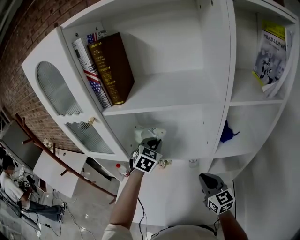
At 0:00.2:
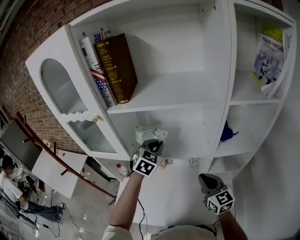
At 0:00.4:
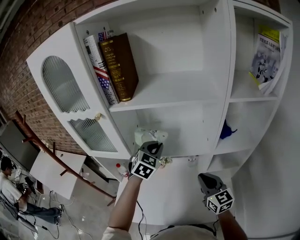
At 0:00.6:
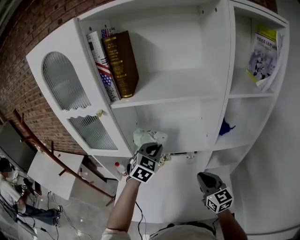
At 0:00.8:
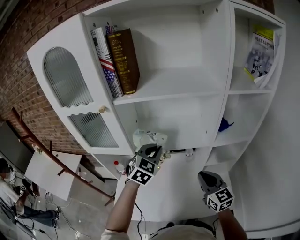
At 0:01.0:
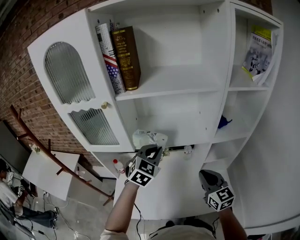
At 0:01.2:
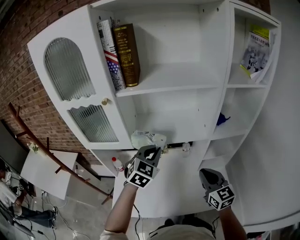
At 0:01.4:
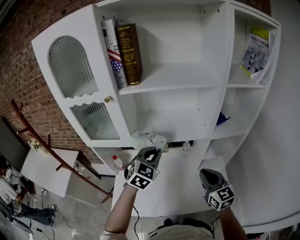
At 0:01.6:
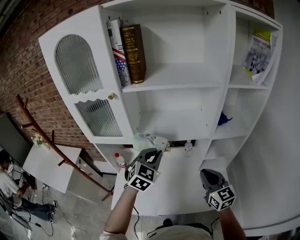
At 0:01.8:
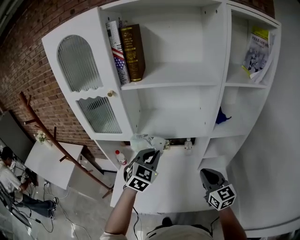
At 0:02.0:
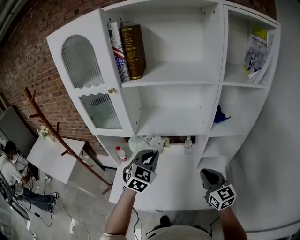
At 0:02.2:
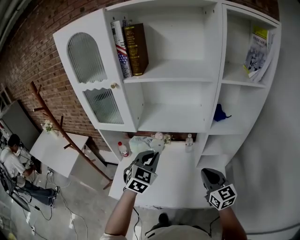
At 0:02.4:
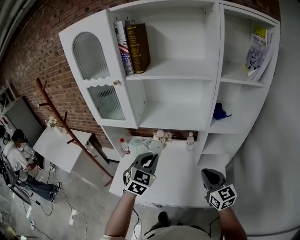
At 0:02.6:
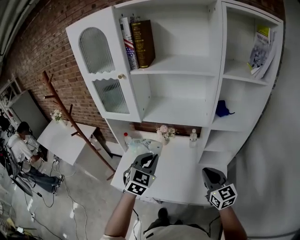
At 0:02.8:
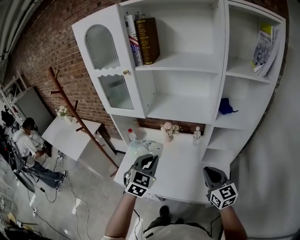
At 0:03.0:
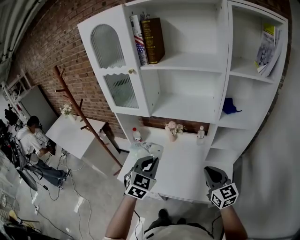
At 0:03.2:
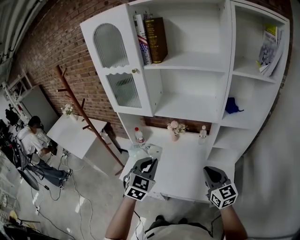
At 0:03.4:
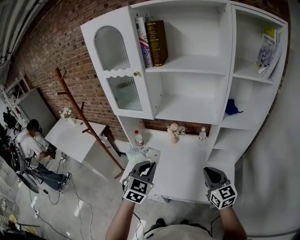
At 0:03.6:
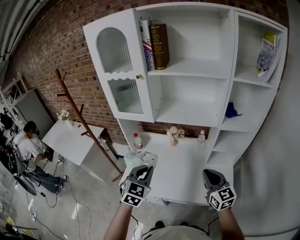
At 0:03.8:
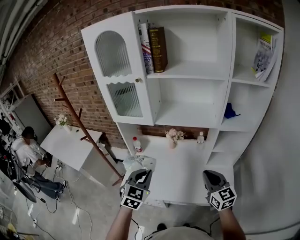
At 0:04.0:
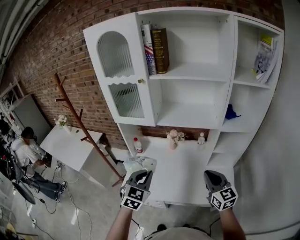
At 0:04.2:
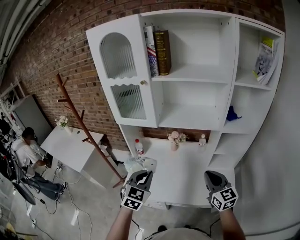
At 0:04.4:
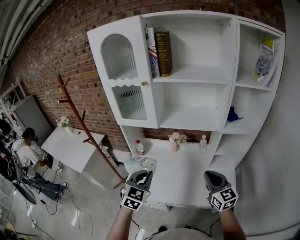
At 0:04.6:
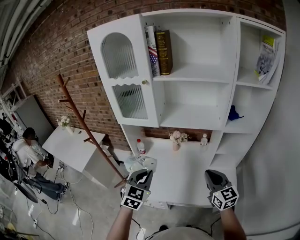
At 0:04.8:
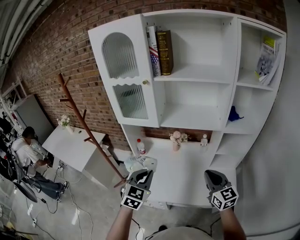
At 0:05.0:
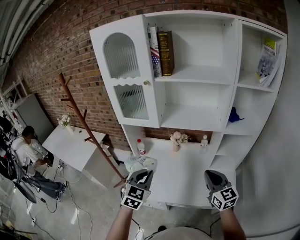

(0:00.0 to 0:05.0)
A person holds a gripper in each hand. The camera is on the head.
0:00.0 - 0:01.6: The left gripper shifts approximately 20 cm backward; the right gripper shifts about 10 cm backward.
0:01.6 - 0:03.4: The right gripper shifts about 10 cm backward, while the left gripper goes approximately 20 cm backward, and turns by approximately 20 degrees.
0:03.4 - 0:05.0: The left gripper travels to the left by some 5 cm.

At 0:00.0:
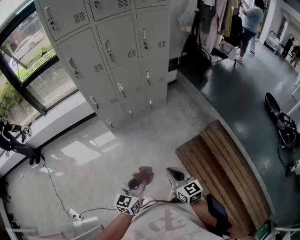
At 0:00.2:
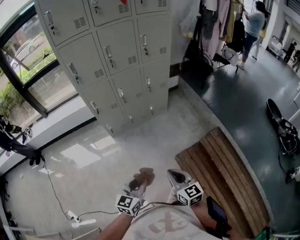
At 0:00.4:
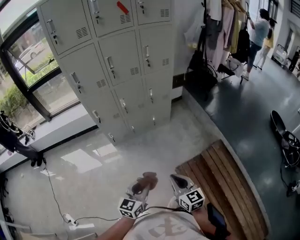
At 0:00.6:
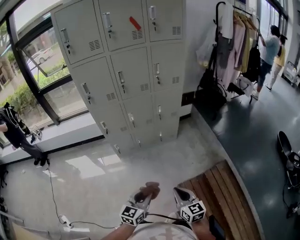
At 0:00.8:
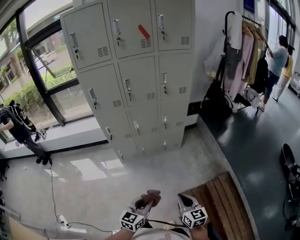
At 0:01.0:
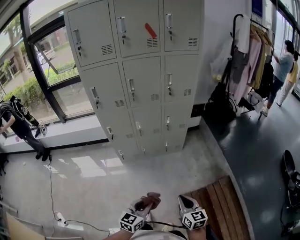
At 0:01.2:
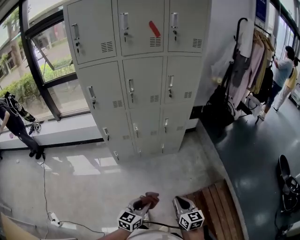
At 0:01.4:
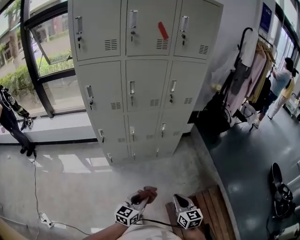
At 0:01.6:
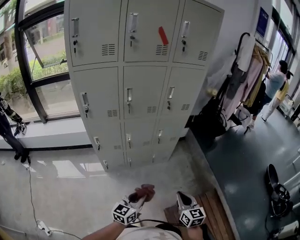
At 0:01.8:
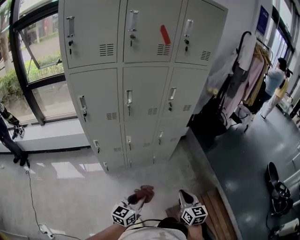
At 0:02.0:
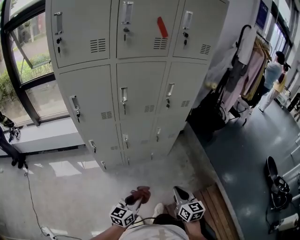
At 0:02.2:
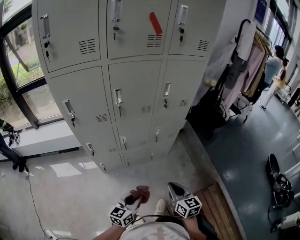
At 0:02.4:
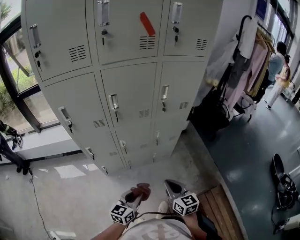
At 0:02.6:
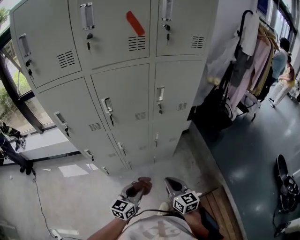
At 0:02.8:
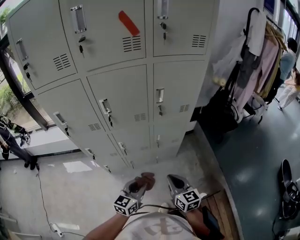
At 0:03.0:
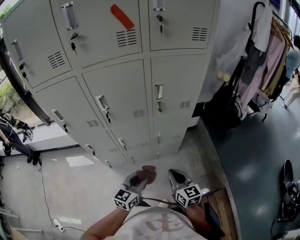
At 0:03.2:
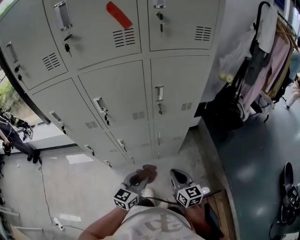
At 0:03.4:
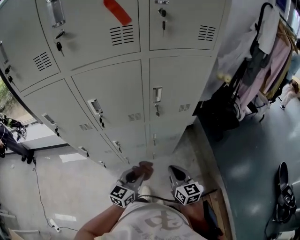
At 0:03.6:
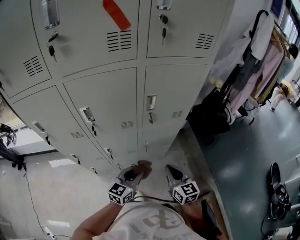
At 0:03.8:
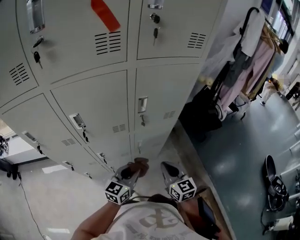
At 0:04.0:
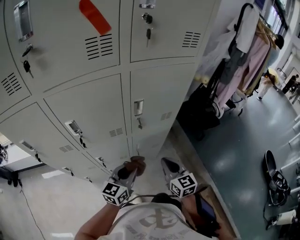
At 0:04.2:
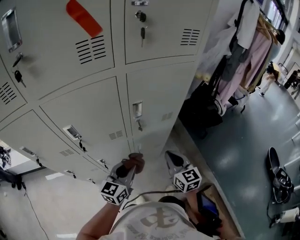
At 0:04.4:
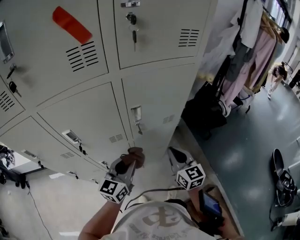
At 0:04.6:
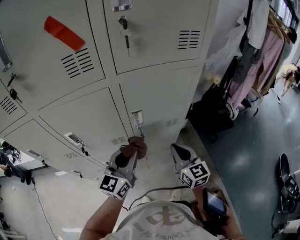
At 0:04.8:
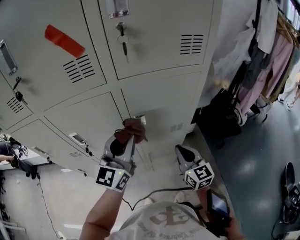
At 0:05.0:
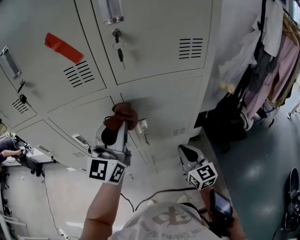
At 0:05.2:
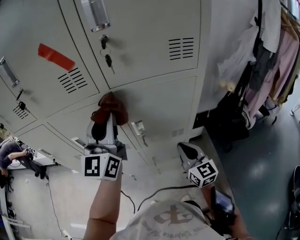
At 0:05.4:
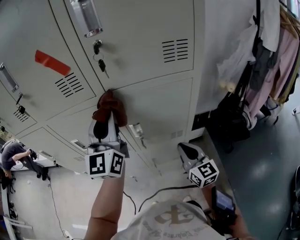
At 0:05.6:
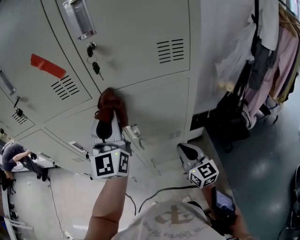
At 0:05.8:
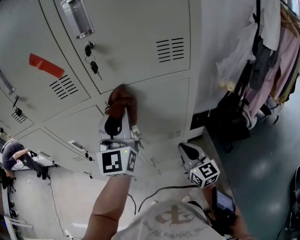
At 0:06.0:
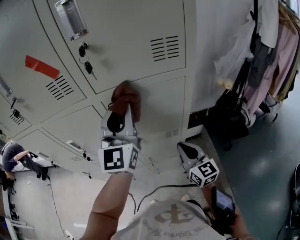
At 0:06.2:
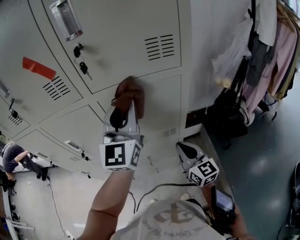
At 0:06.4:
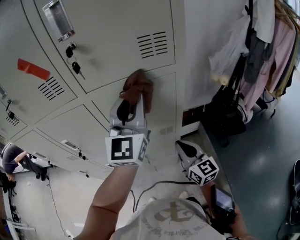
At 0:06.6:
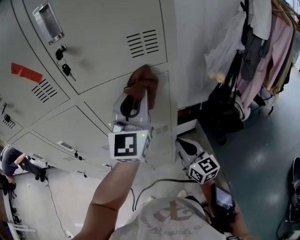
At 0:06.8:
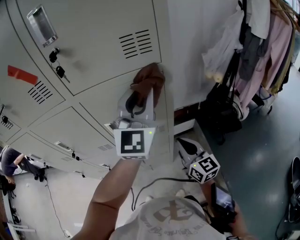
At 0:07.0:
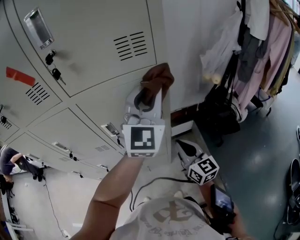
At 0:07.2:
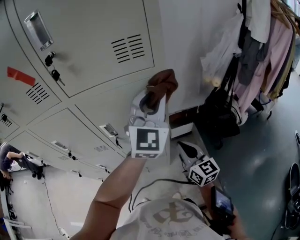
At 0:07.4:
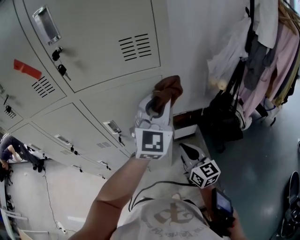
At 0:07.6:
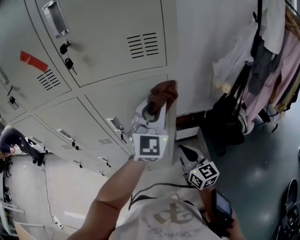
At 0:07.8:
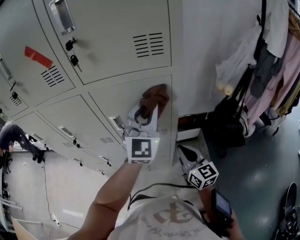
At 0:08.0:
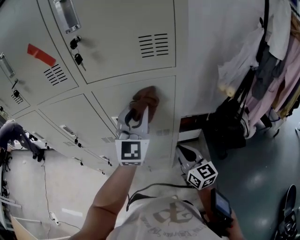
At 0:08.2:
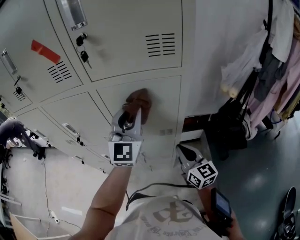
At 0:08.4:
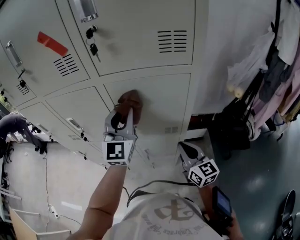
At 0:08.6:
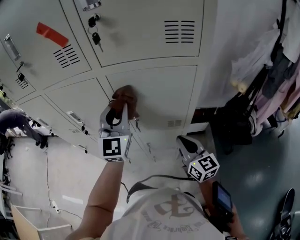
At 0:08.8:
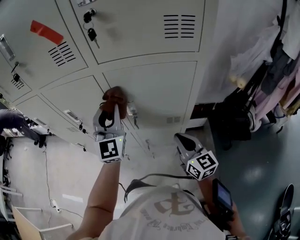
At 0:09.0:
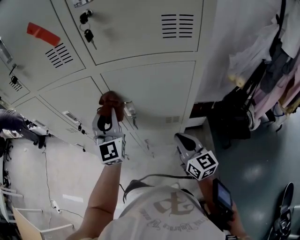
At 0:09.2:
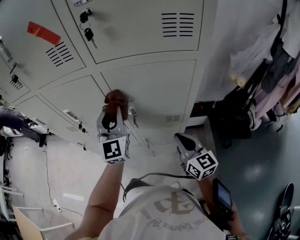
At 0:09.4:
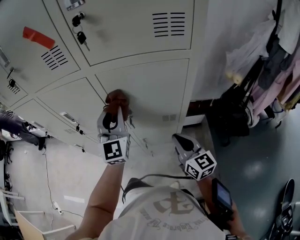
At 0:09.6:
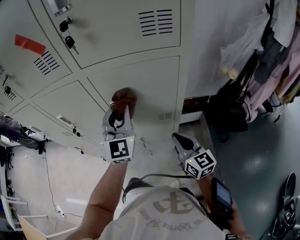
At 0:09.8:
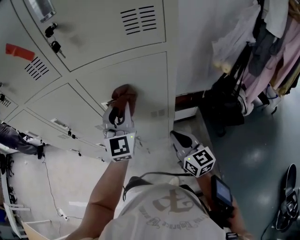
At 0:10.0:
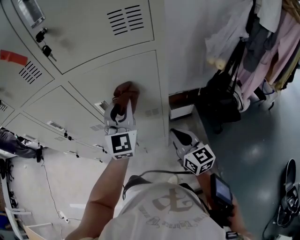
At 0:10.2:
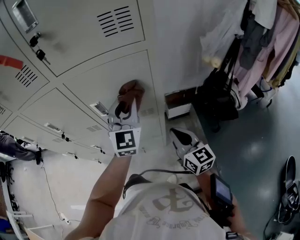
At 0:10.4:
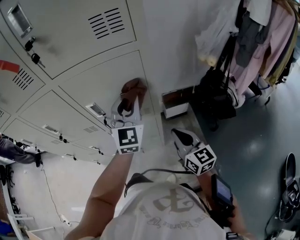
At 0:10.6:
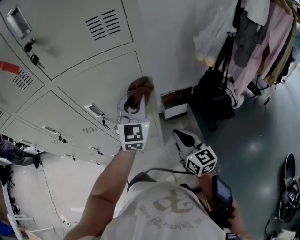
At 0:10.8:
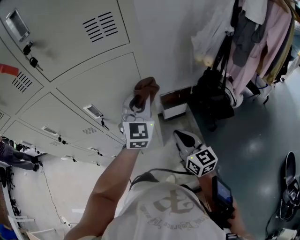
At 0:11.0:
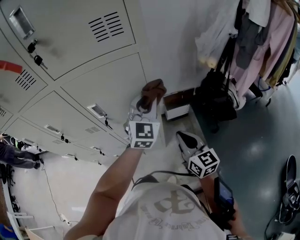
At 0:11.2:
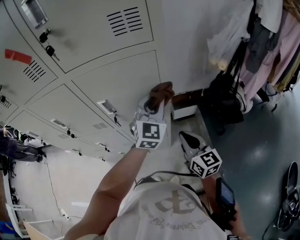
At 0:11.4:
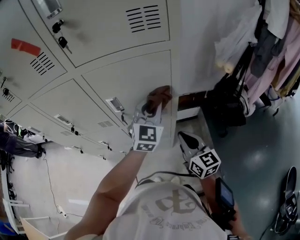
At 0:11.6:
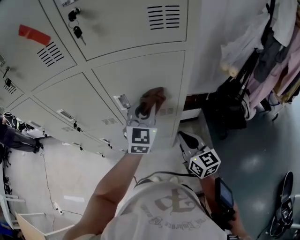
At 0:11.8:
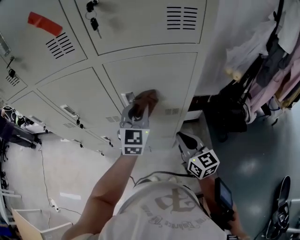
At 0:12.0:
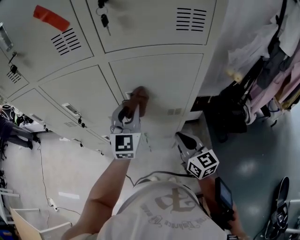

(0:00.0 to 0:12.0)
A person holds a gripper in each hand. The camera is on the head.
0:00.0 - 0:01.6: The grippers both shift forward by roughly 30 cm.
0:01.6 - 0:03.0: The two grippers go some 25 cm forward.
0:03.0 - 0:04.4: The right gripper is displaced forward by some 20 cm. The left gripper heads forward and upward, covering roughly 25 cm.
0:04.4 - 0:06.0: The left gripper heads upward and forward, covering approximately 30 cm, and swivels about 40 degrees; the right gripper goes some 10 cm to the right and forward.
0:06.0 - 0:07.6: The right gripper is displaced to the right by about 5 cm. Meanwhile the left gripper heads to the right, covering some 15 cm, and rotates approximately 20 degrees.
0:07.6 - 0:09.0: The left gripper shifts approximately 25 cm to the left, and changes its angle by approximately 30 degrees. Meanwhile the right gripper moves to the left, about 5 cm.
0:09.0 - 0:10.4: The right gripper shifts some 10 cm to the right and backward. Meanwhile the left gripper goes approximately 20 cm to the right, and turns by some 20 degrees.
0:10.4 - 0:12.0: The grippers both shift to the left by some 15 cm.

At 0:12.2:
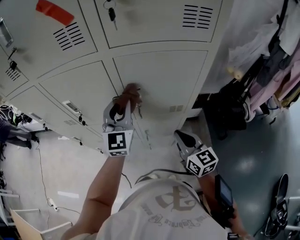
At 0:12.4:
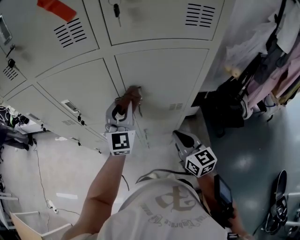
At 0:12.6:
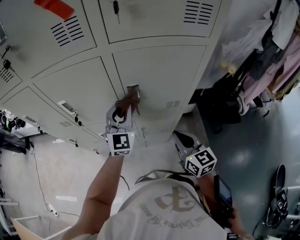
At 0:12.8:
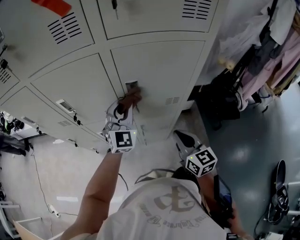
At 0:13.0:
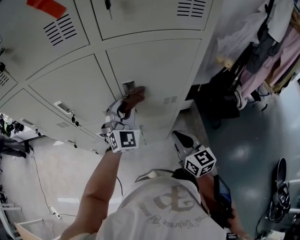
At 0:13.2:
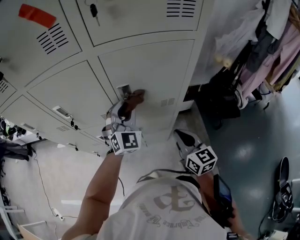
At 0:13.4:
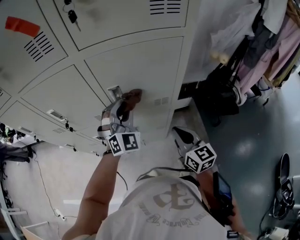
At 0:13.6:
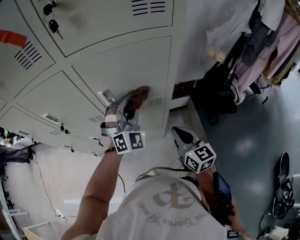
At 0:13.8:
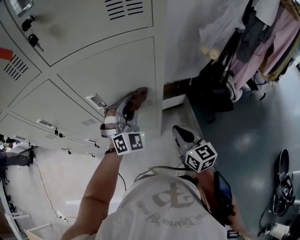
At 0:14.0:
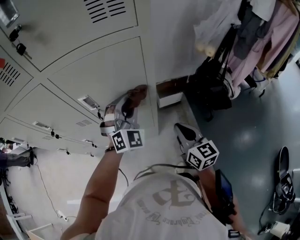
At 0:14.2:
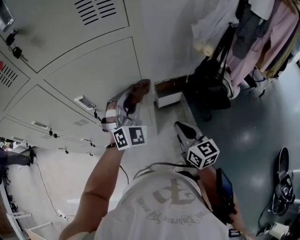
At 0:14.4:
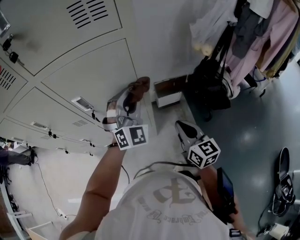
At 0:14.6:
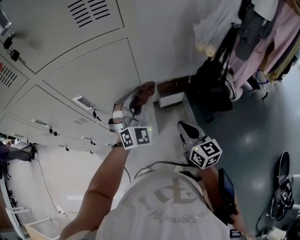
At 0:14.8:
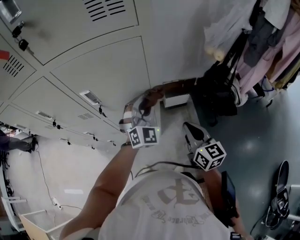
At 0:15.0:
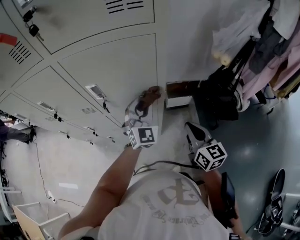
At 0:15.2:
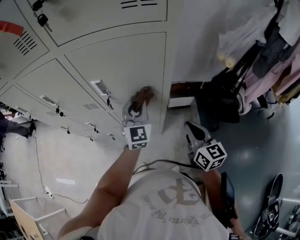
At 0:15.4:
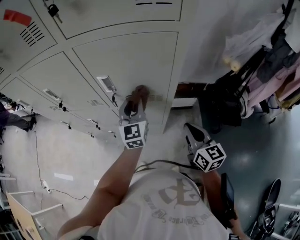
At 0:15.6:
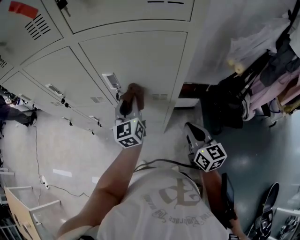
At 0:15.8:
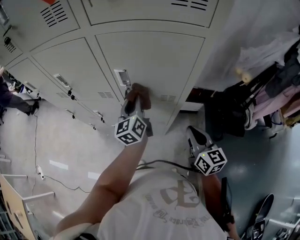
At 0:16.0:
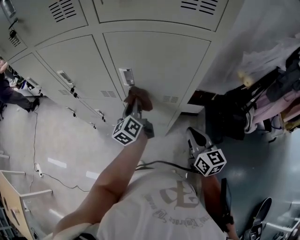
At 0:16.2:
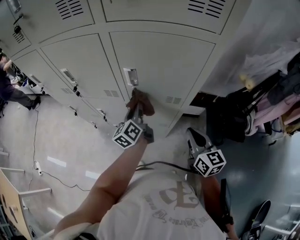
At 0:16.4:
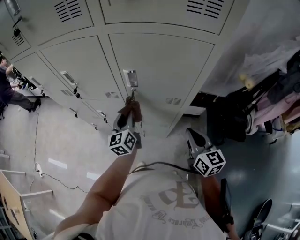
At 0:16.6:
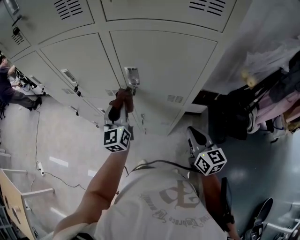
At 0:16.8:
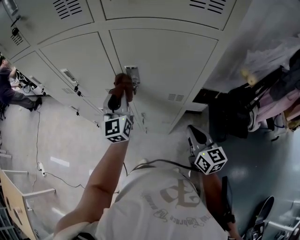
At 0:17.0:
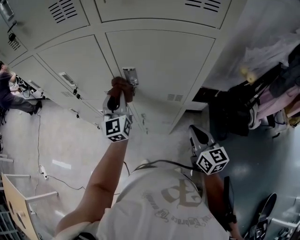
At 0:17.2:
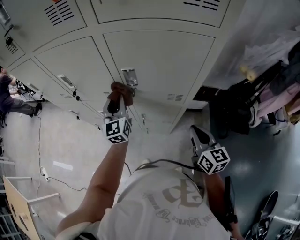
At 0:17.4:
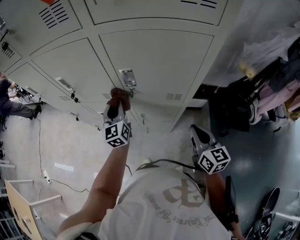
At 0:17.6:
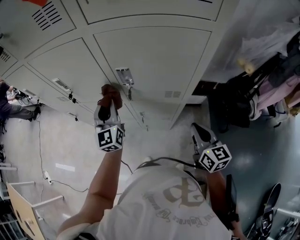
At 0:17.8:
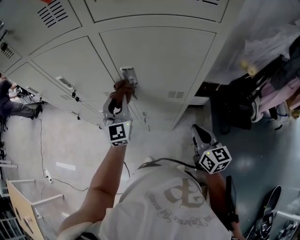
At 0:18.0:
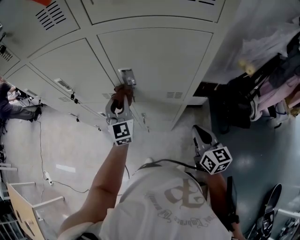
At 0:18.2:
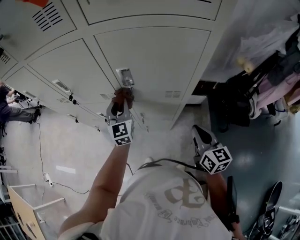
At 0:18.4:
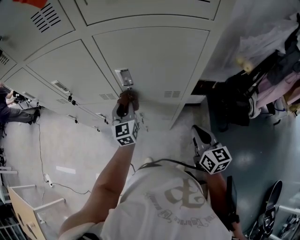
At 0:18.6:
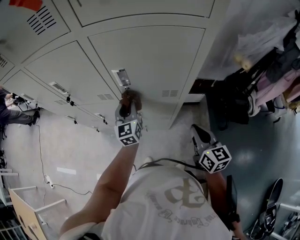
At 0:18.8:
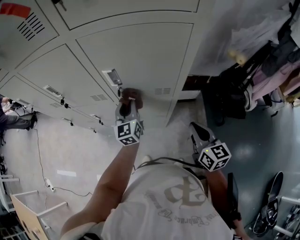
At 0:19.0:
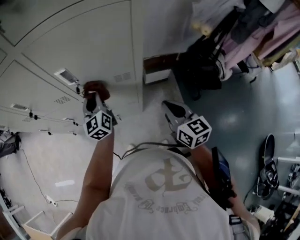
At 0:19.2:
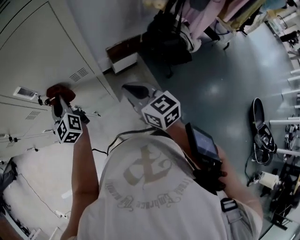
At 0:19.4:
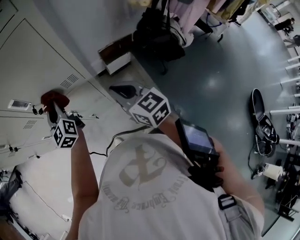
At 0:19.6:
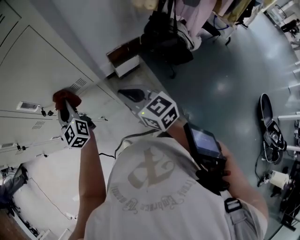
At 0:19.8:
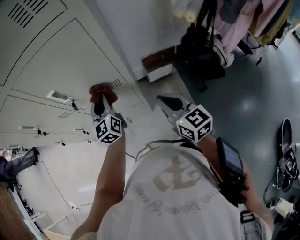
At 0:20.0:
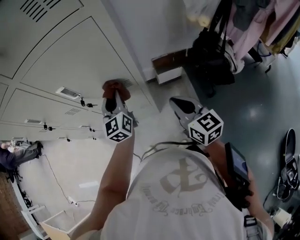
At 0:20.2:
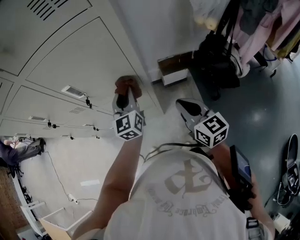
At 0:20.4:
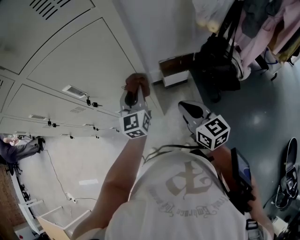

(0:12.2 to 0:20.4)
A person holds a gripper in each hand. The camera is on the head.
0:12.2 - 0:13.8: The left gripper moves to the right and downward, about 20 cm, and swivels approximately 40 degrees; the right gripper shifts some 10 cm to the right.
0:13.8 - 0:15.4: The left gripper is displaced downward by about 5 cm, moves some 10 cm to the right and comes back, and rolls counterclockwise, seen from behind, by about 50 degrees.
0:15.4 - 0:17.2: The left gripper shifts roughly 15 cm to the left.
0:17.2 - 0:18.8: The left gripper travels to the right and downward by roughly 10 cm.
0:18.8 - 0:20.4: The right gripper travels to the right by approximately 5 cm, while the left gripper goes about 15 cm to the right.
